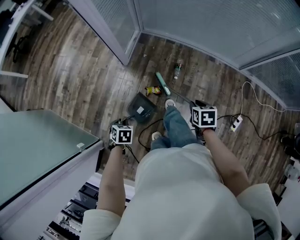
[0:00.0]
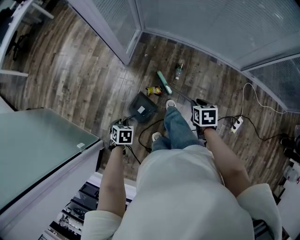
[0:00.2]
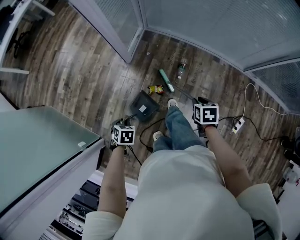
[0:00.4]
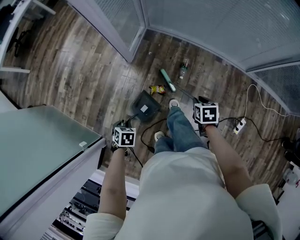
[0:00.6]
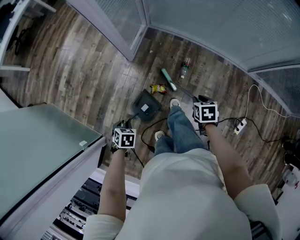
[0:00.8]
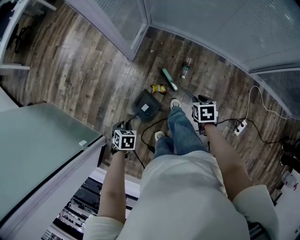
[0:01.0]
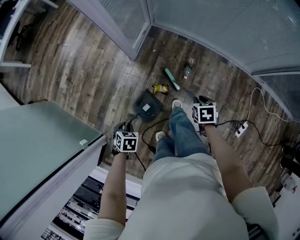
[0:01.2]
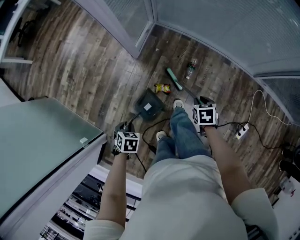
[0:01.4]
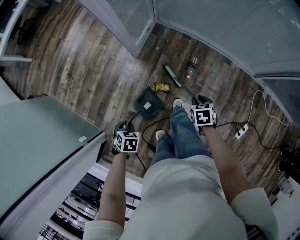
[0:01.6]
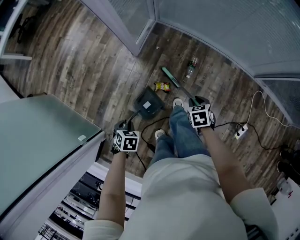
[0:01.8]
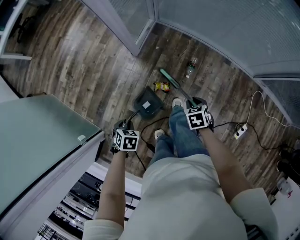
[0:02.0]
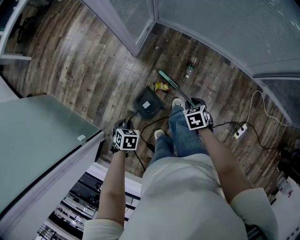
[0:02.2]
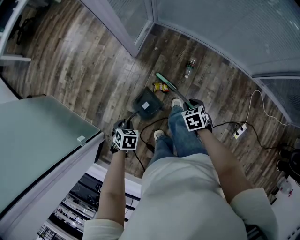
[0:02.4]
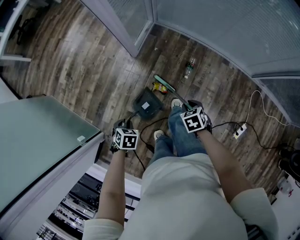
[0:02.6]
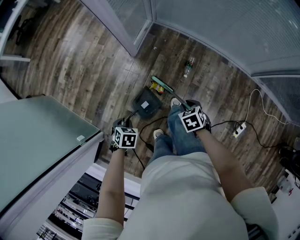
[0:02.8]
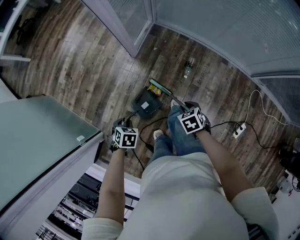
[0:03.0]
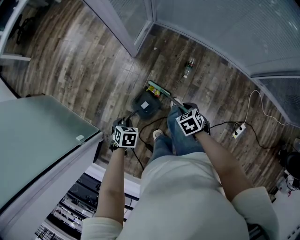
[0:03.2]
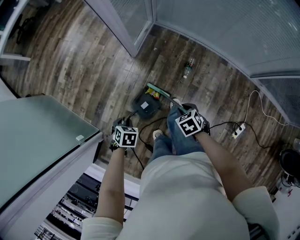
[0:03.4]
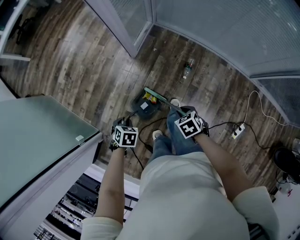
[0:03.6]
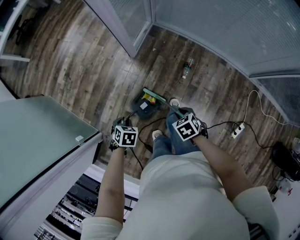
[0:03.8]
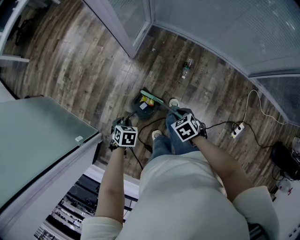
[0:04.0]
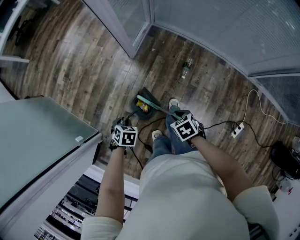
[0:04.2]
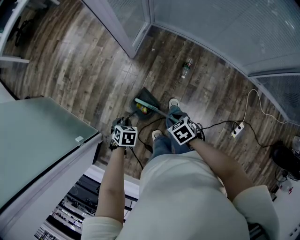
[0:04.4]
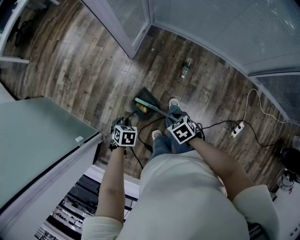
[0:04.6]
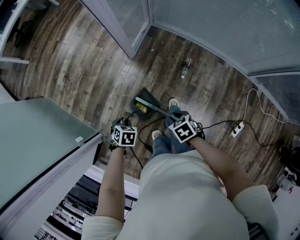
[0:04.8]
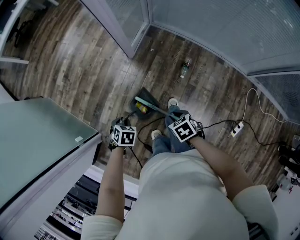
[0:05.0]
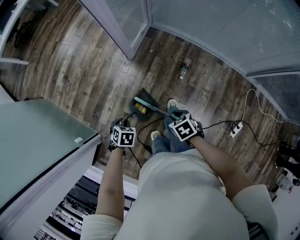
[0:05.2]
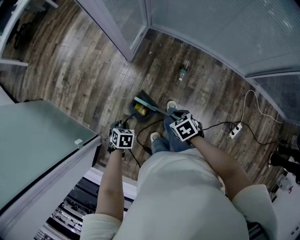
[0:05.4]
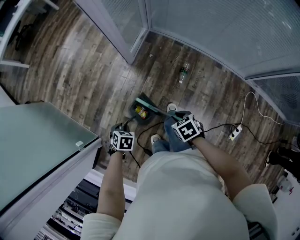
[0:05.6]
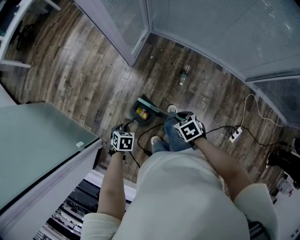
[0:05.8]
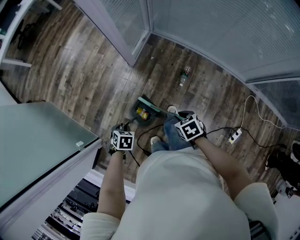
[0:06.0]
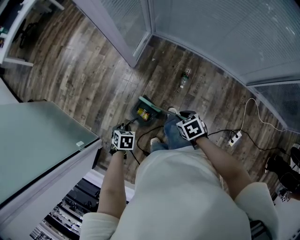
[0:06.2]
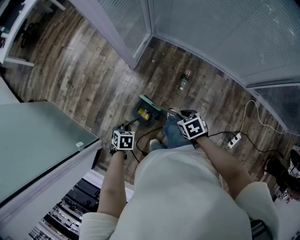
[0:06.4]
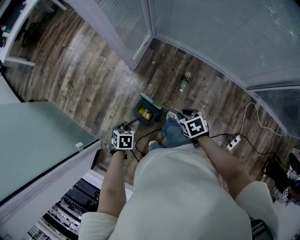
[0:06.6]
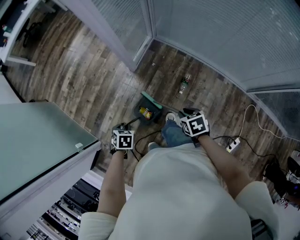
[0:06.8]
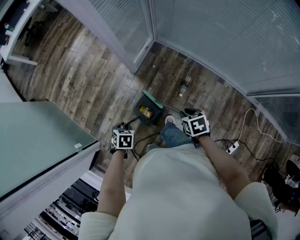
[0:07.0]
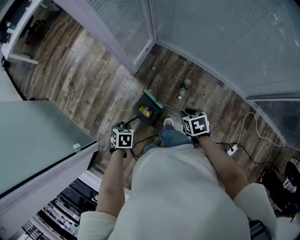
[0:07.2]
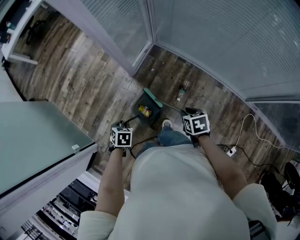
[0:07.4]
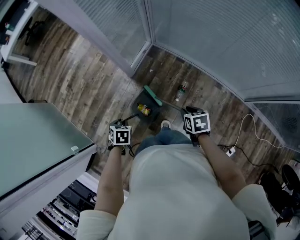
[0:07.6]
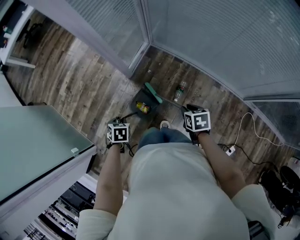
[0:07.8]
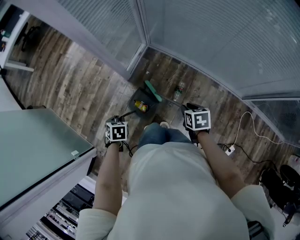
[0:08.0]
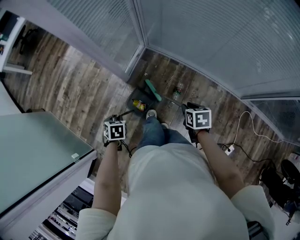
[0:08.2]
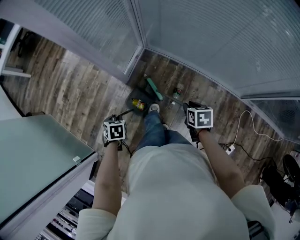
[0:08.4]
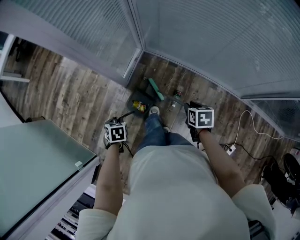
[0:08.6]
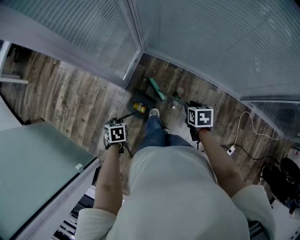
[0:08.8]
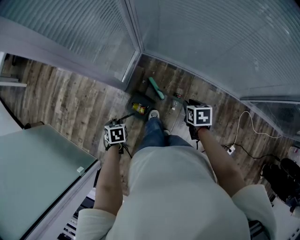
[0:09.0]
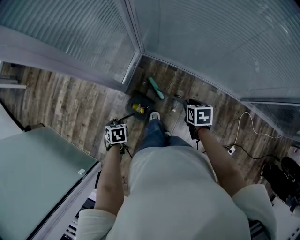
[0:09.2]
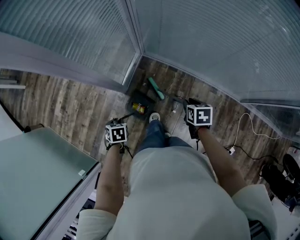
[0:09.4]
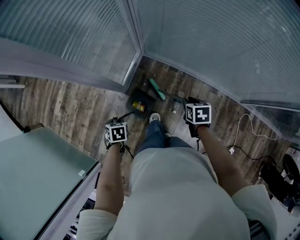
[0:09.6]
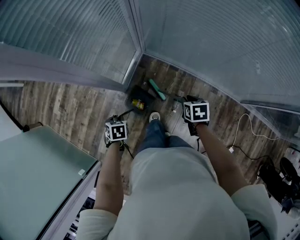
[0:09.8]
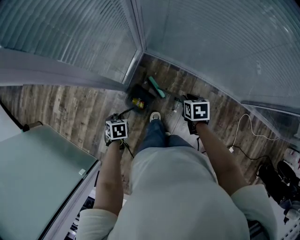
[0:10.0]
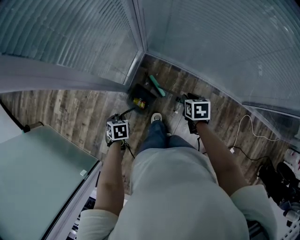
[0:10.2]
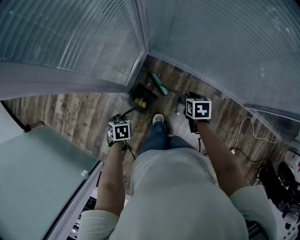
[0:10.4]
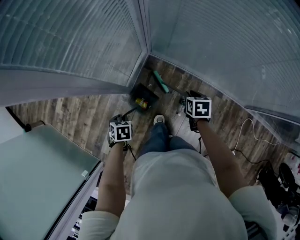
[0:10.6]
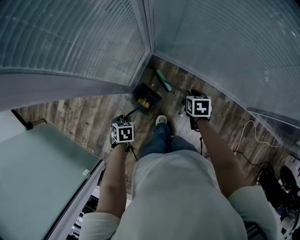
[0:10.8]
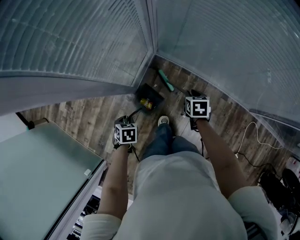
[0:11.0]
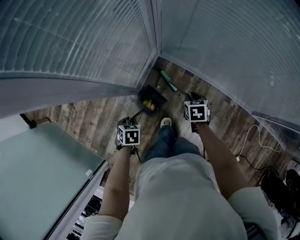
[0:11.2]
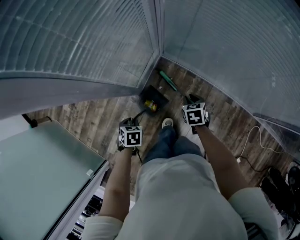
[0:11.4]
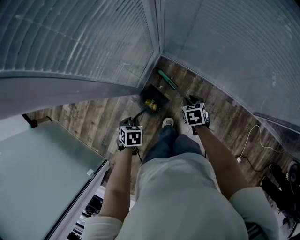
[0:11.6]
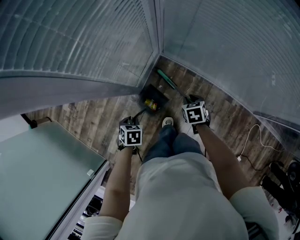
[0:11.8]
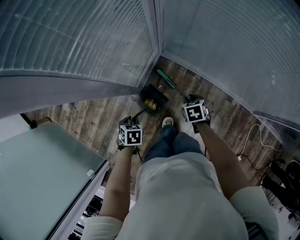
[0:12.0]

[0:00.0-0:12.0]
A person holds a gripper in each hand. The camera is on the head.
0:06.0 to 0:07.6: The left gripper changes place by roughly 15 cm.
0:07.6 to 0:09.0: The left gripper changes place by roughly 15 cm.
0:09.0 to 0:10.4: The left gripper changes place by about 10 cm.

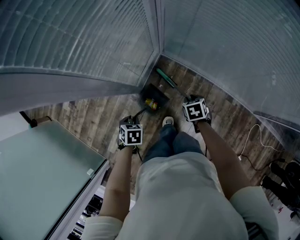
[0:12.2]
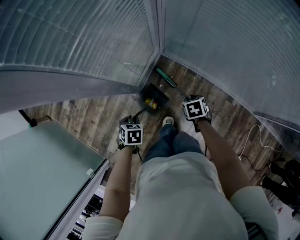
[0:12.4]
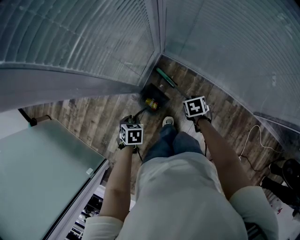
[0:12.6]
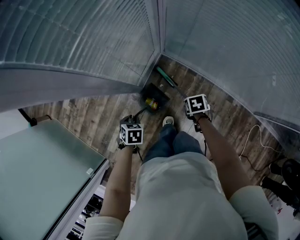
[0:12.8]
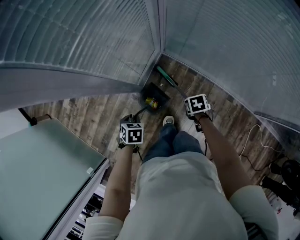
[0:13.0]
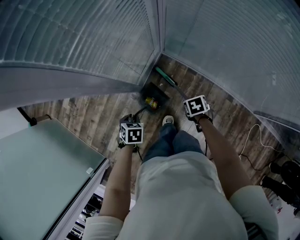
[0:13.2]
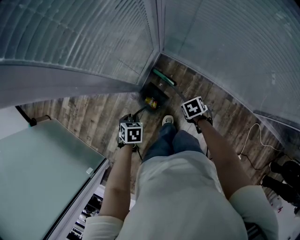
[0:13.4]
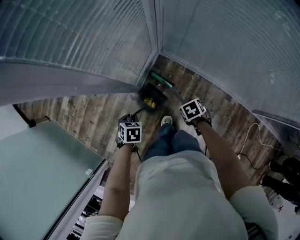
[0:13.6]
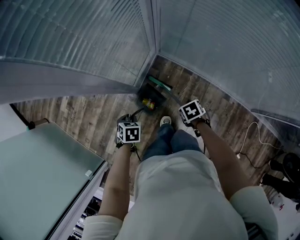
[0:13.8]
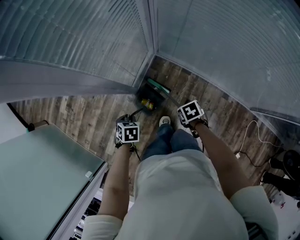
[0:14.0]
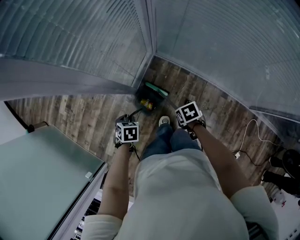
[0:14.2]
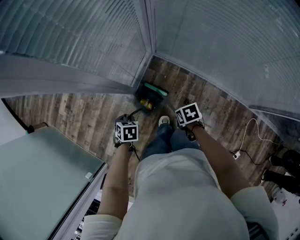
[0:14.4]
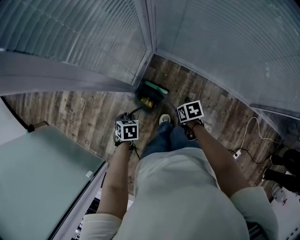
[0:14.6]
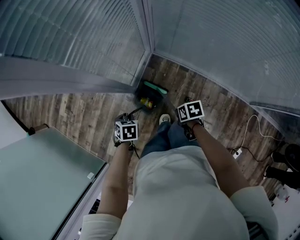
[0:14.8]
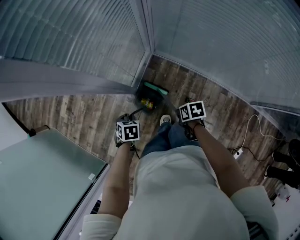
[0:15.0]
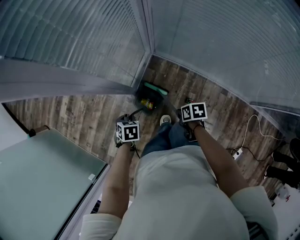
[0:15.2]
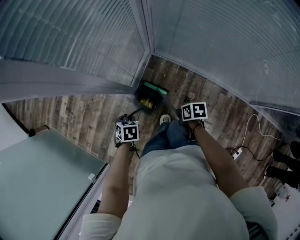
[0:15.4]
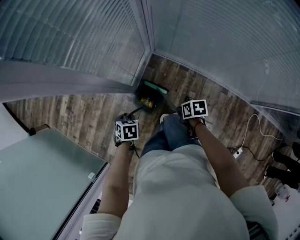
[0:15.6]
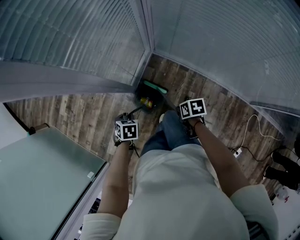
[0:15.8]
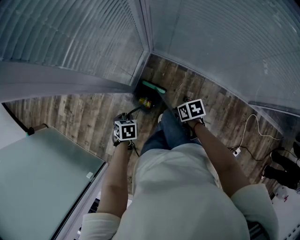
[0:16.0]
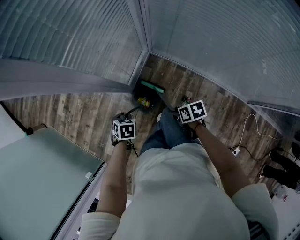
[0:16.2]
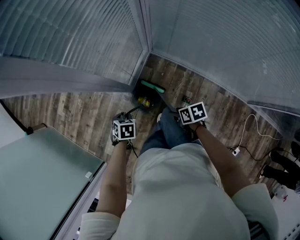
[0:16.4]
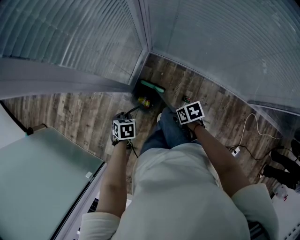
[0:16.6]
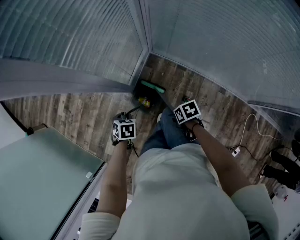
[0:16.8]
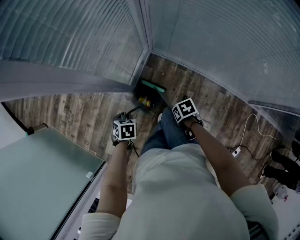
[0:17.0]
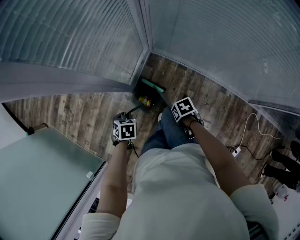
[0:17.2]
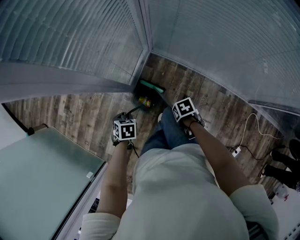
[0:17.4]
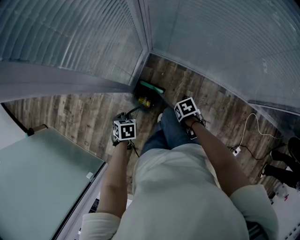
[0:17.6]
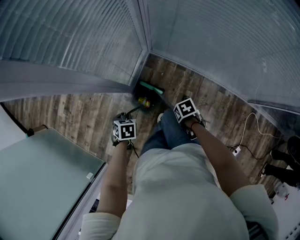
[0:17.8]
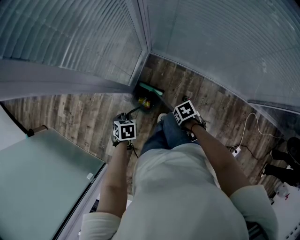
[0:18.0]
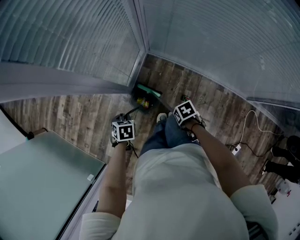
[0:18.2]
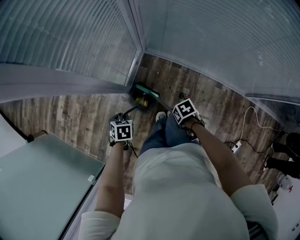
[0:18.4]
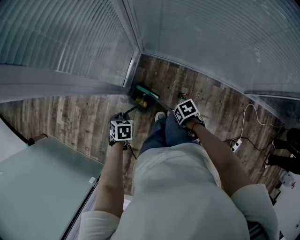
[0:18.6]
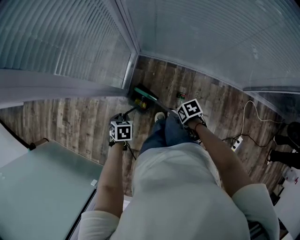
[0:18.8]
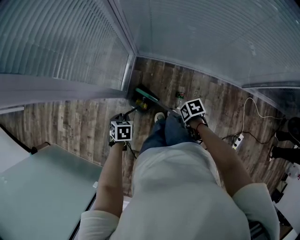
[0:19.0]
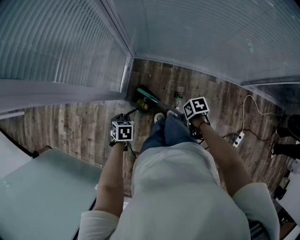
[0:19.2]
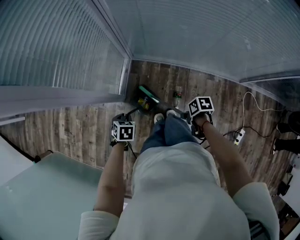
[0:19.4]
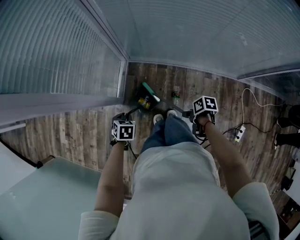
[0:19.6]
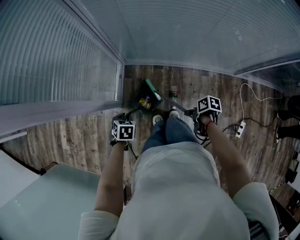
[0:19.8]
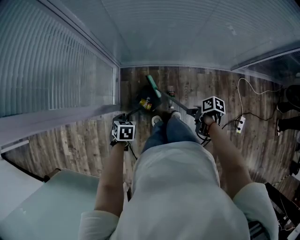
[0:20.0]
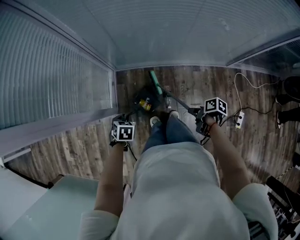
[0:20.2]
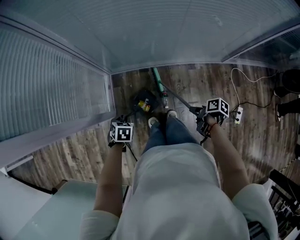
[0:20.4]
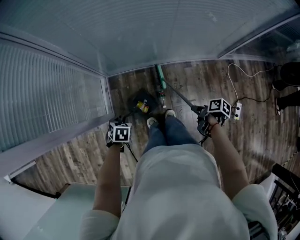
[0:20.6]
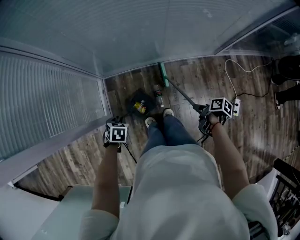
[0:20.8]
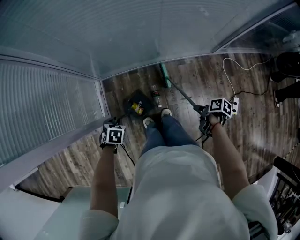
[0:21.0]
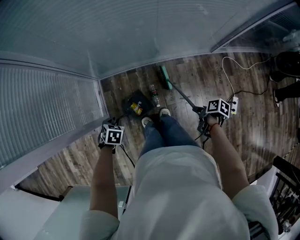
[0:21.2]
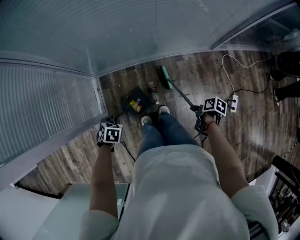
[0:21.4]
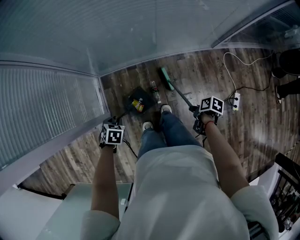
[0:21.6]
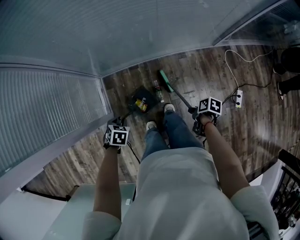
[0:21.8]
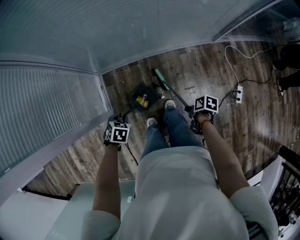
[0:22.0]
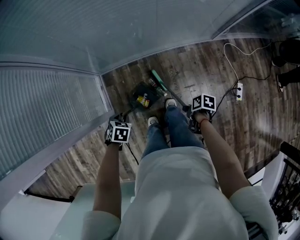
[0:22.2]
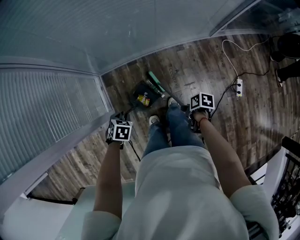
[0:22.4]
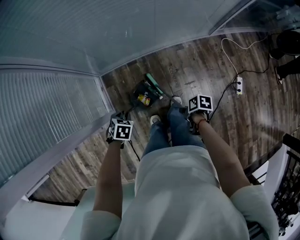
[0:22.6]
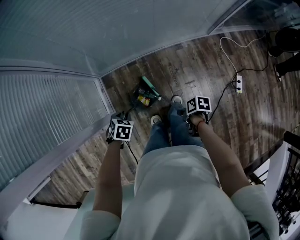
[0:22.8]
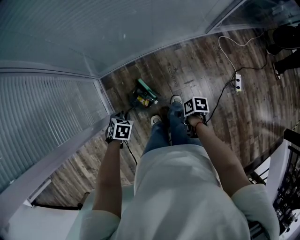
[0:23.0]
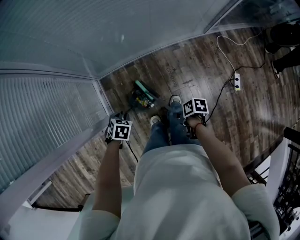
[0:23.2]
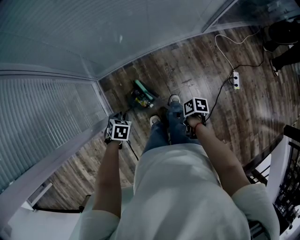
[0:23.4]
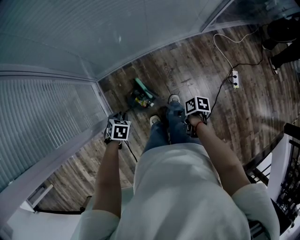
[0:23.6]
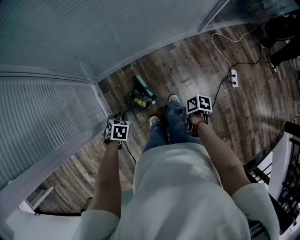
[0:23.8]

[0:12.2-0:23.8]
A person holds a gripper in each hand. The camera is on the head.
0:18.0 to 0:19.4: The left gripper moves approximately 5 cm.
0:19.4 to 0:21.0: The left gripper moves some 15 cm, and turns by approximately 30 degrees.

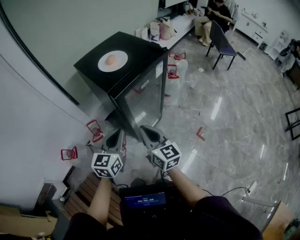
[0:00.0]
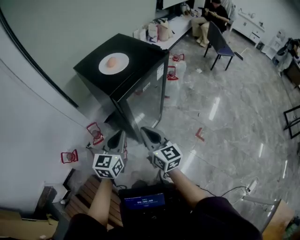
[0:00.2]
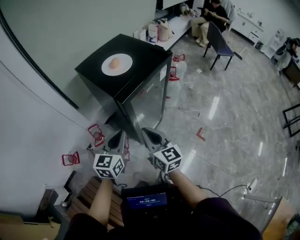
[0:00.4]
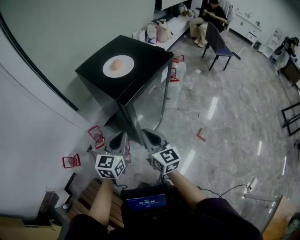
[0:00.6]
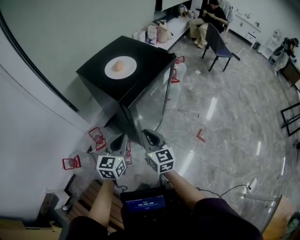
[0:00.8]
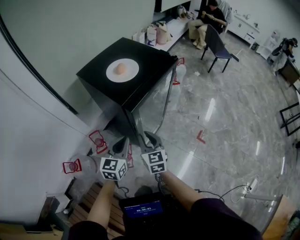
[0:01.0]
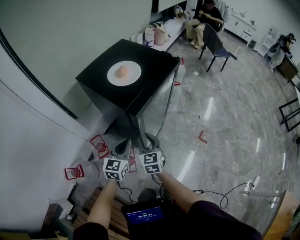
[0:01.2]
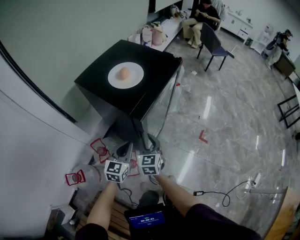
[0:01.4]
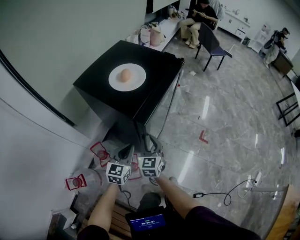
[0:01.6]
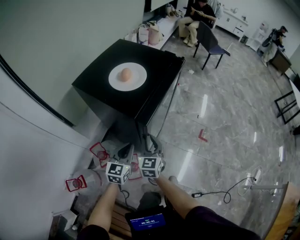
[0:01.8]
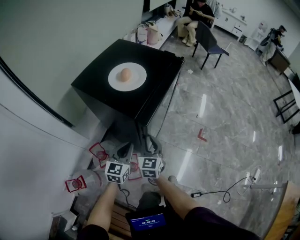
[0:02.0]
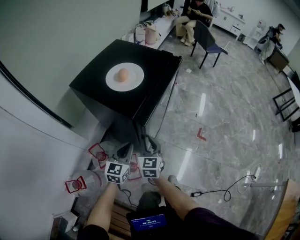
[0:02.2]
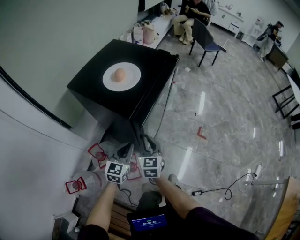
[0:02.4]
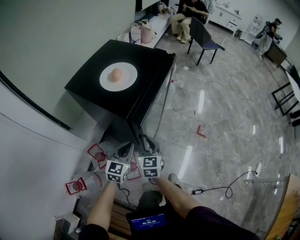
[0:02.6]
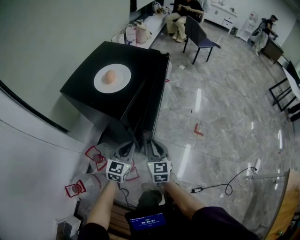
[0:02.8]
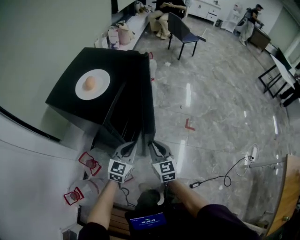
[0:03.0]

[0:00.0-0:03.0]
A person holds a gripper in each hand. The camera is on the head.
0:00.0 to 0:01.6: The right gripper shifts by approximately 20 cm, and turns by some 40 degrees, while the left gripper shifts by about 20 cm.
0:01.6 to 0:03.0: The grippers both shift to the right by about 10 cm.
